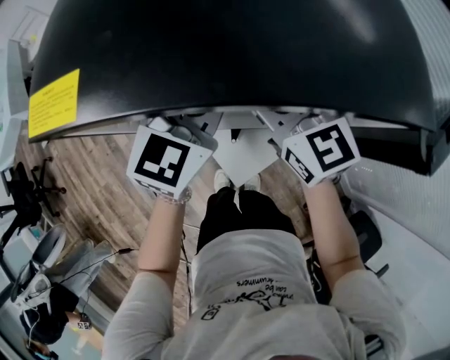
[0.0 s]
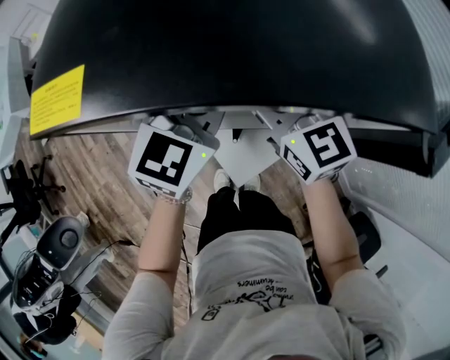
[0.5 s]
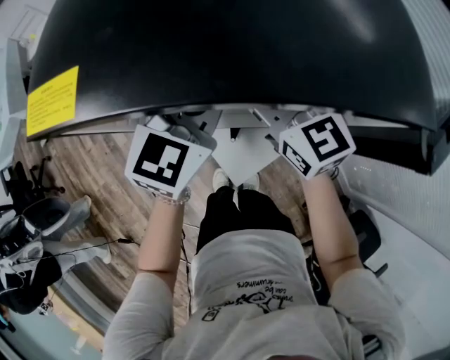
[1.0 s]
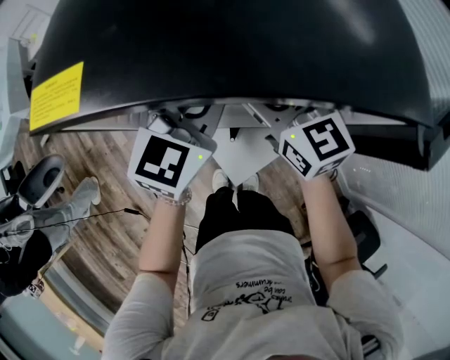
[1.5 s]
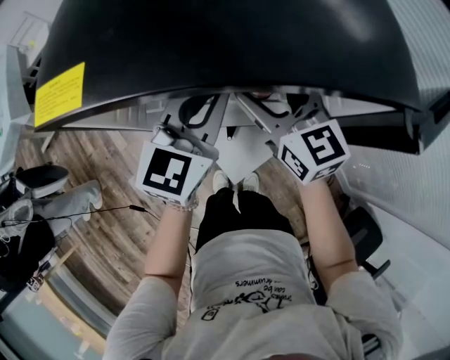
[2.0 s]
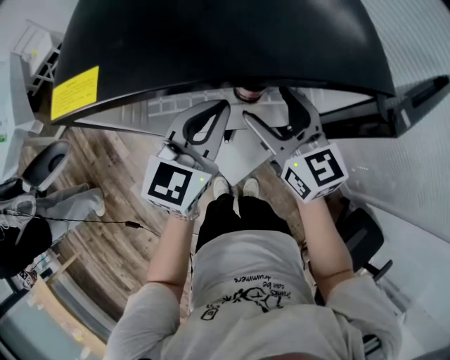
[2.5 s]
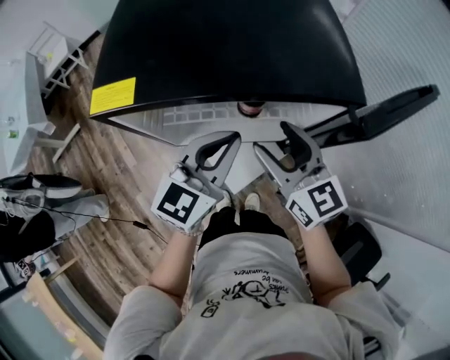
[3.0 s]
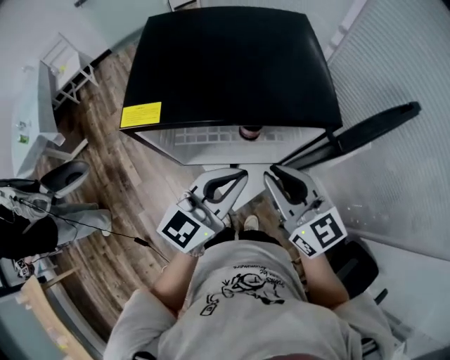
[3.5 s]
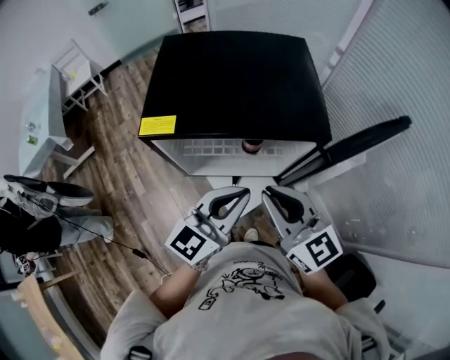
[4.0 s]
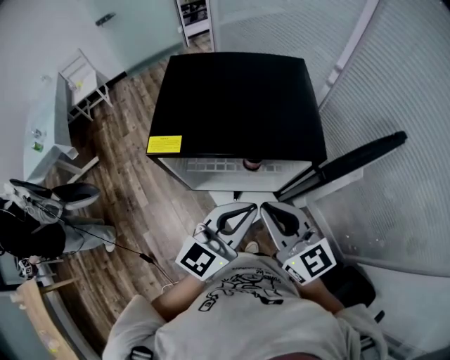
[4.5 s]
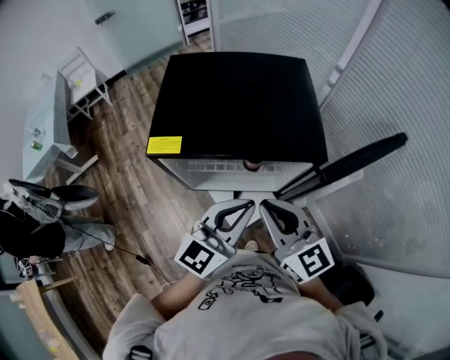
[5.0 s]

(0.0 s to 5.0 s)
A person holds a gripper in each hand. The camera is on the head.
0.0 s - 2.5 s: The right gripper goes some 10 cm to the right and backward; the left gripper is displaced backward by roughly 5 cm.
2.5 s - 5.0 s: The grippers both shift upward and backward by some 20 cm. The right gripper closes its fingers.

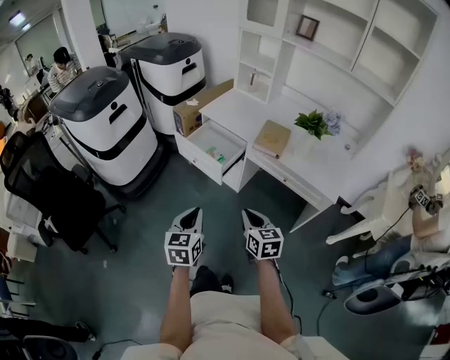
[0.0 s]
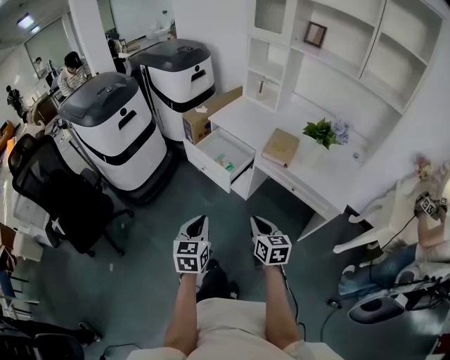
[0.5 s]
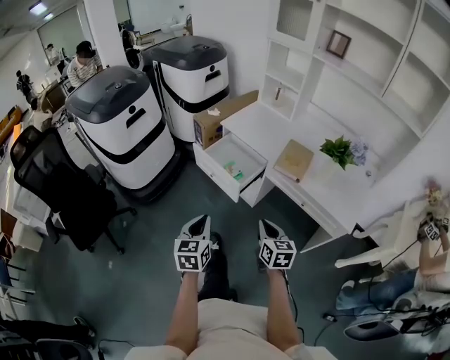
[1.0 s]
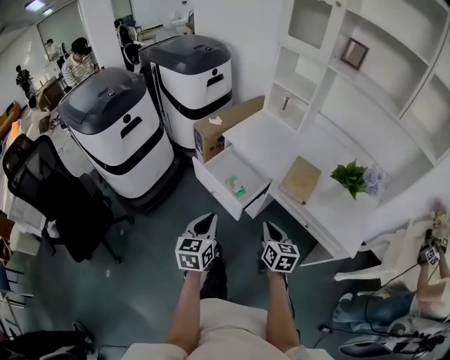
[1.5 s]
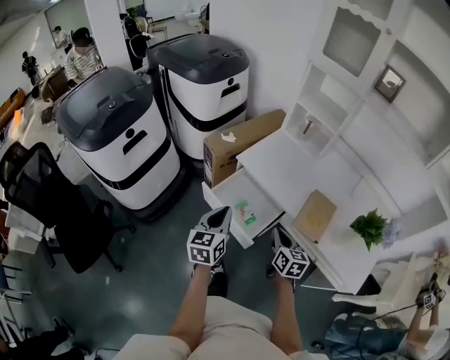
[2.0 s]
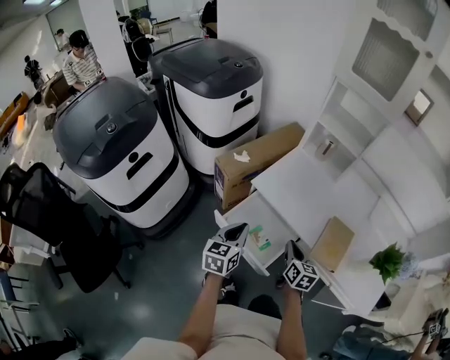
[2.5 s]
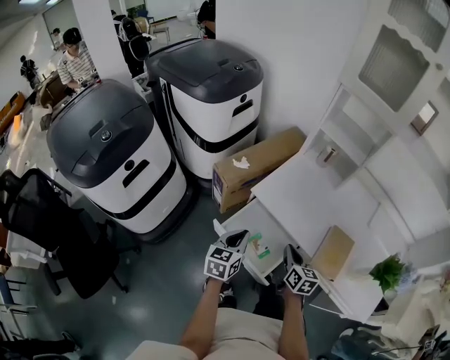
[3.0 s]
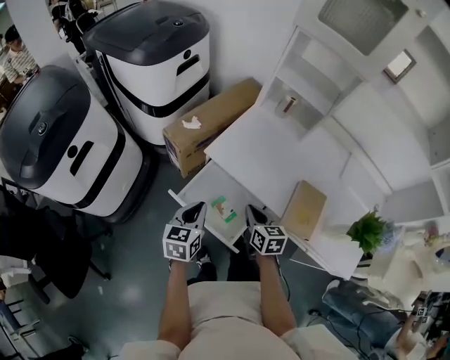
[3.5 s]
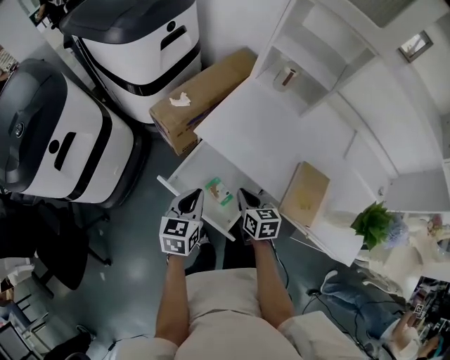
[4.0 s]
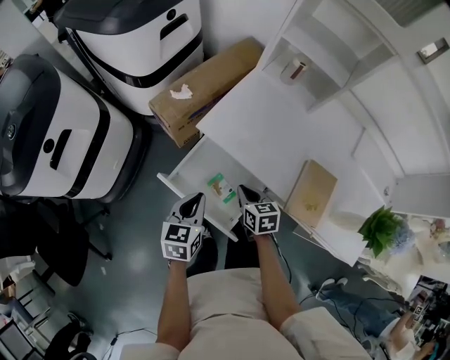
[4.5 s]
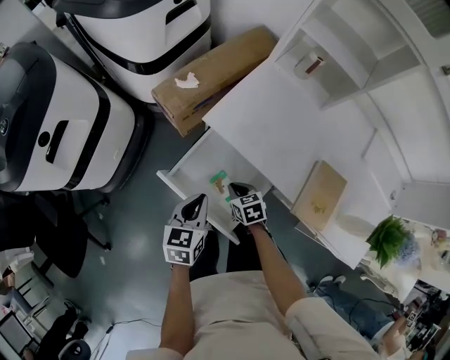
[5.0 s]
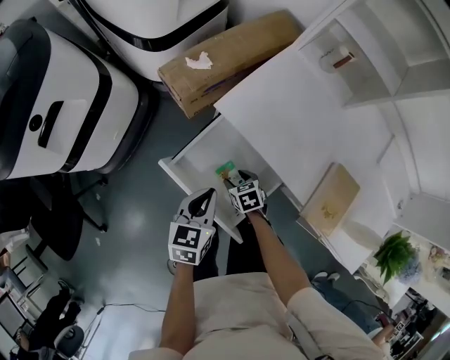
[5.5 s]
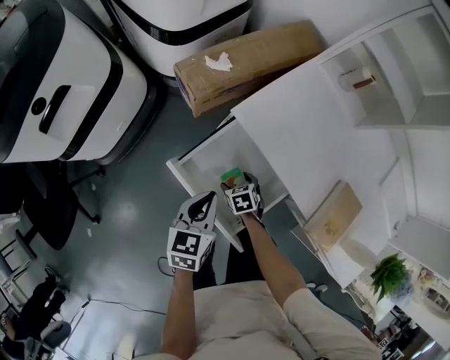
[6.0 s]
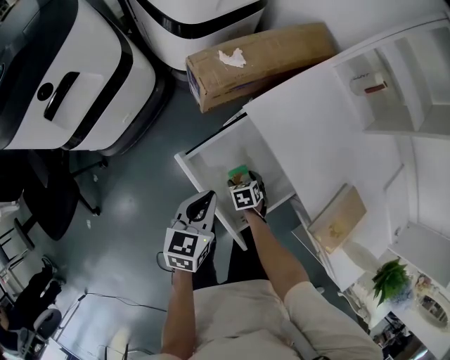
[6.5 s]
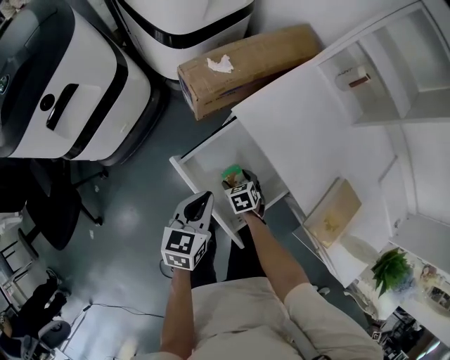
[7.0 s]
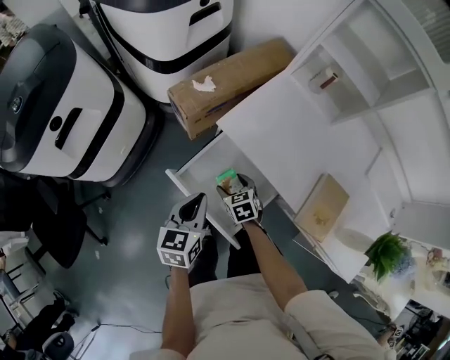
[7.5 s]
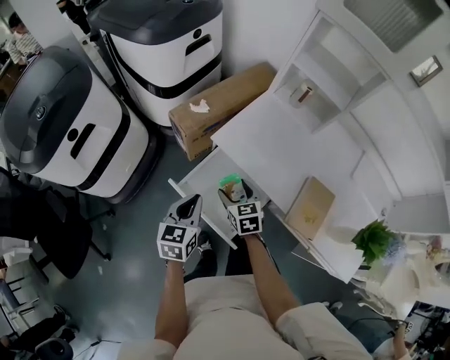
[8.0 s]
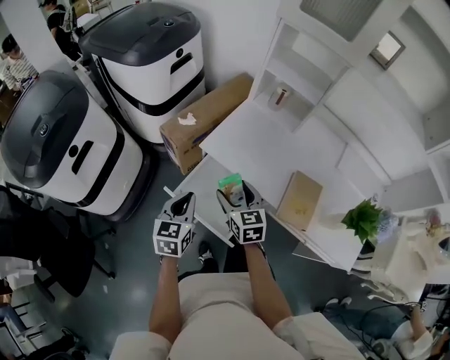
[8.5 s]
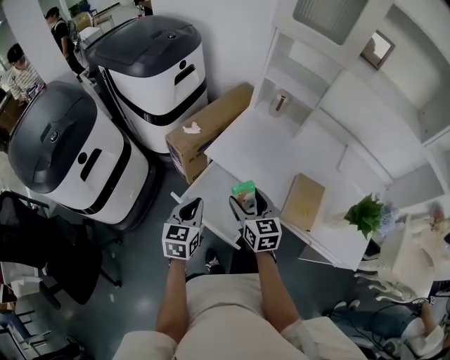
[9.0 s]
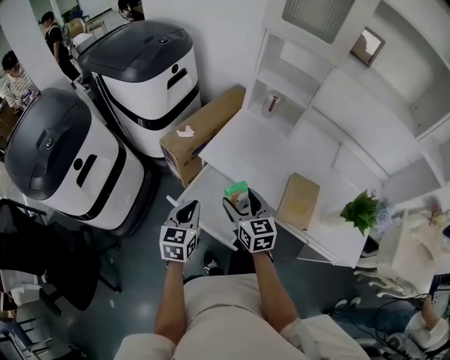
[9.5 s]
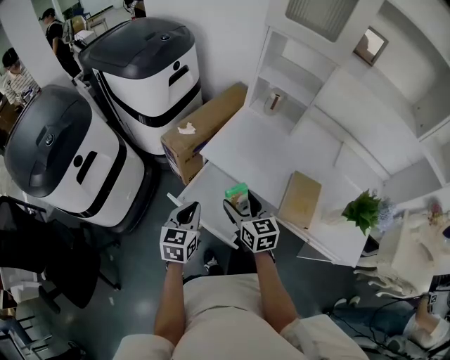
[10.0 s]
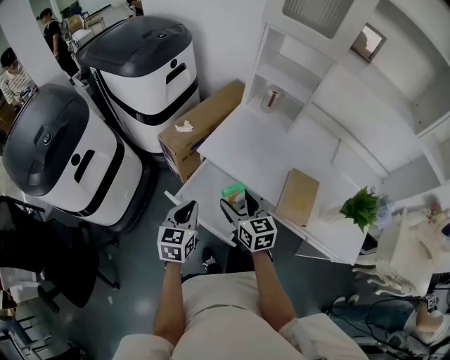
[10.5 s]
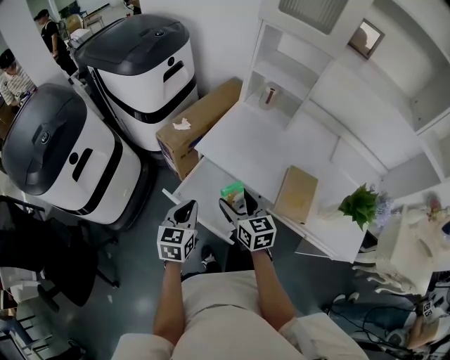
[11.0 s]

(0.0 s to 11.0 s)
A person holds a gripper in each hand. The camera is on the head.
0.0 s - 2.0 s: Both grippers move forward, some 40 cm.
2.0 s - 3.5 s: The grippers both shift forward and downward by approximately 15 cm.
3.5 s - 5.5 s: The left gripper shifts about 10 cm downward; the right gripper moves downward, some 25 cm, turns by some 40 degrees, and opens.
5.5 s - 7.5 s: The right gripper is displaced upward by about 10 cm, while the left gripper is displaced upward by about 5 cm.
7.5 s - 9.0 s: The right gripper moves upward, about 25 cm, and angles its fingers upward, by approximately 30 degrees. The left gripper goes roughly 10 cm upward.
9.0 s - 11.0 s: The grippers stay close to where they were, moving slightly.

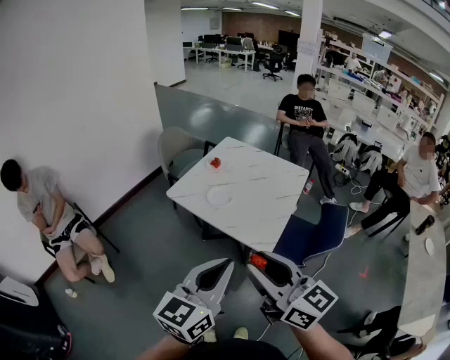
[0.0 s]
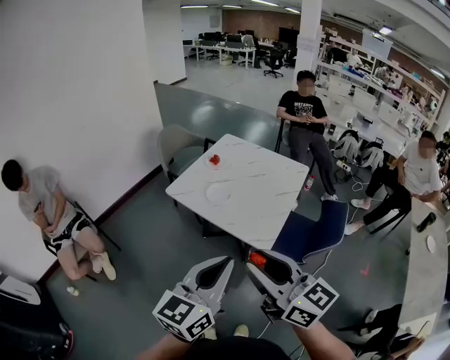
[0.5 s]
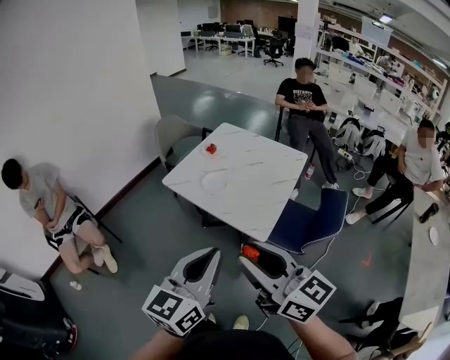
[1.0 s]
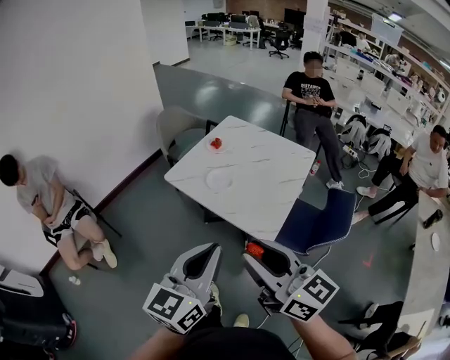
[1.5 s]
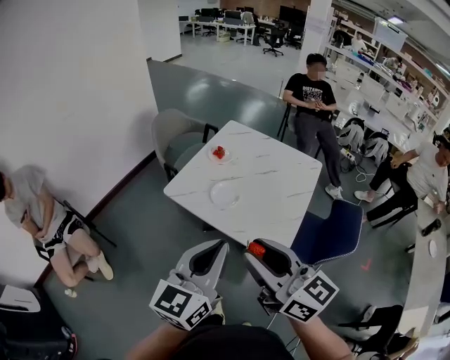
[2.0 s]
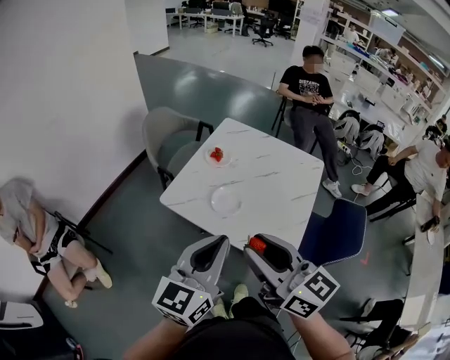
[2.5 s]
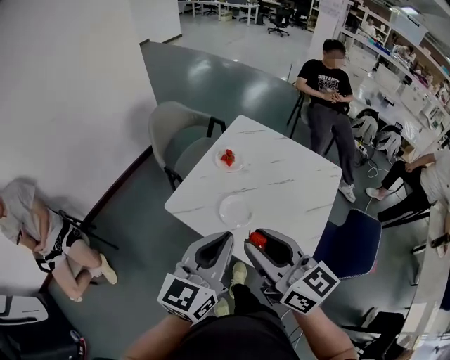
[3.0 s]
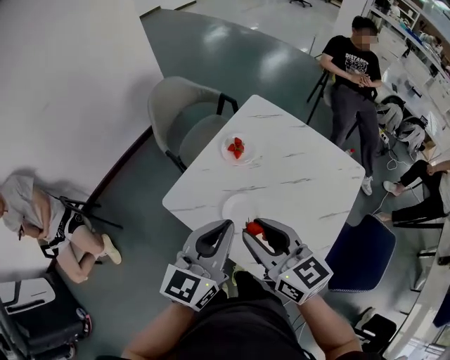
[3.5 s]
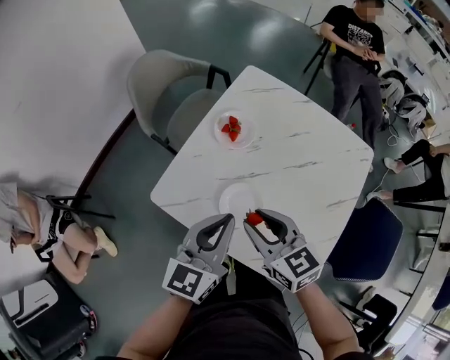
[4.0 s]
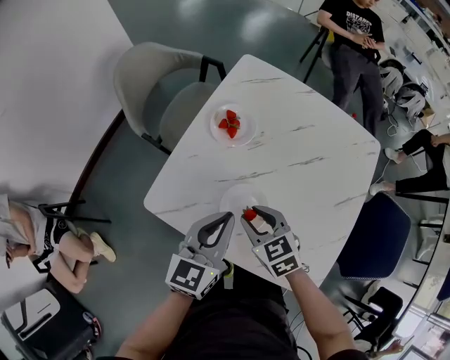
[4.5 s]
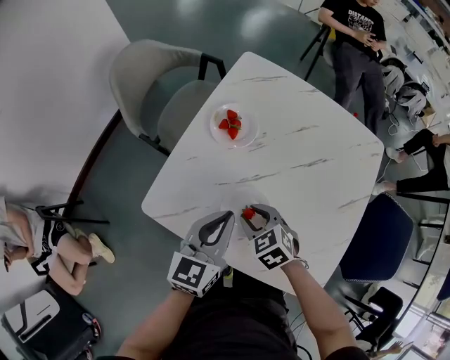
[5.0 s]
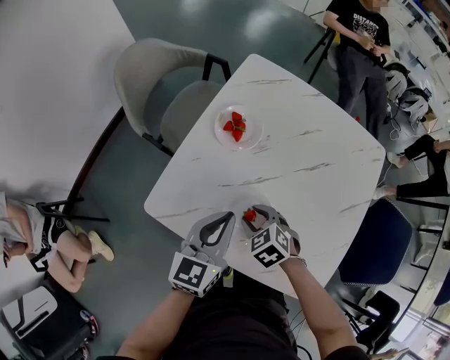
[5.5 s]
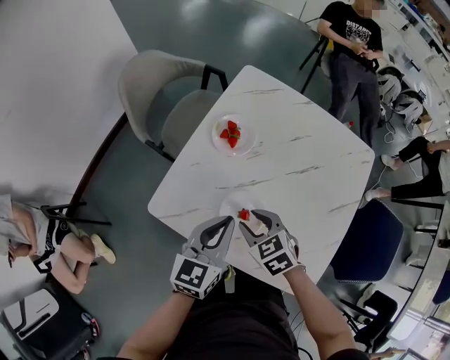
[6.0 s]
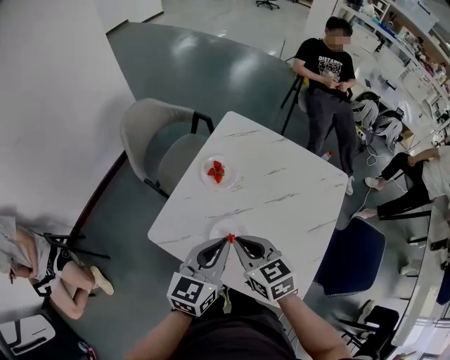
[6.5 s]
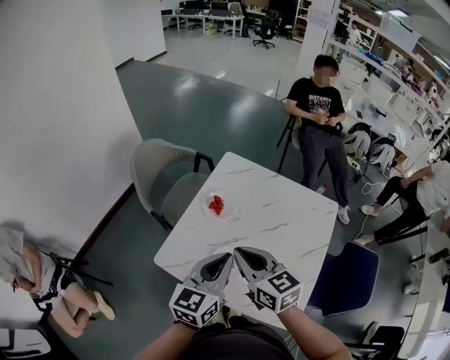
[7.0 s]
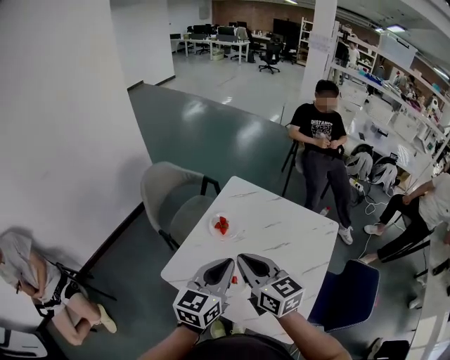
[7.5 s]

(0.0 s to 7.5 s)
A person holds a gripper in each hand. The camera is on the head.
0.0 s - 2.0 s: The grippers both shift forward by about 15 cm.
2.0 s - 4.0 s: Both grippers move forward and downward, about 40 cm. The right gripper rotates some 30 degrees.
4.0 s - 5.5 s: The left gripper shifts approximately 10 cm downward. Meanwhile the right gripper heads downward, covering about 20 cm, and points its fingers some 40 degrees further downward.
5.5 s - 7.5 s: The right gripper moves upward, about 35 cm, tips its fingers upward by approximately 50 degrees, and closes up. Meanwhile the left gripper moves upward, some 25 cm.

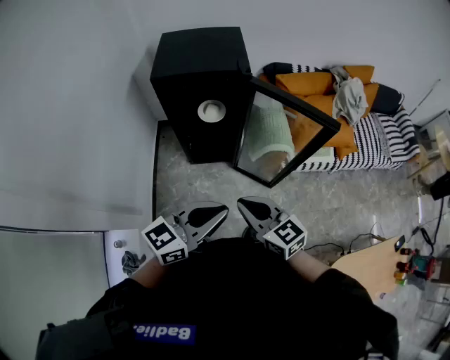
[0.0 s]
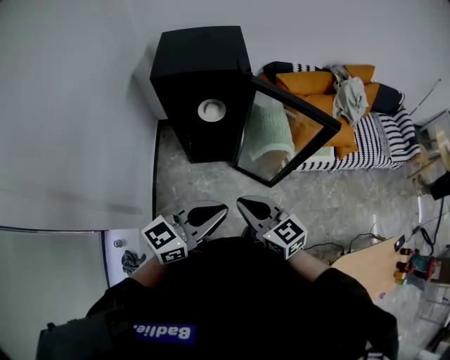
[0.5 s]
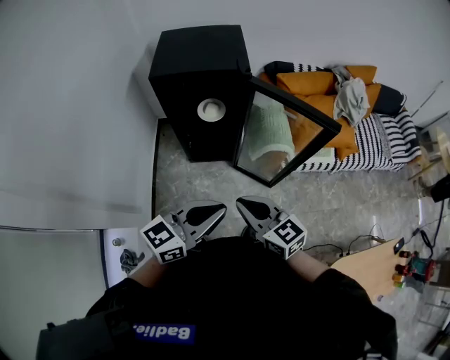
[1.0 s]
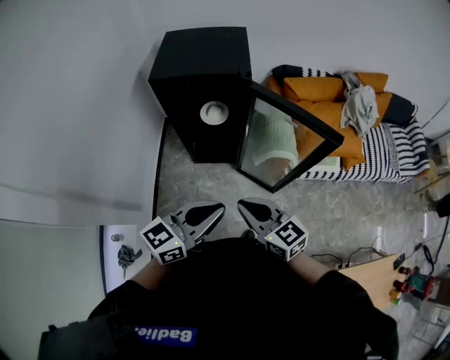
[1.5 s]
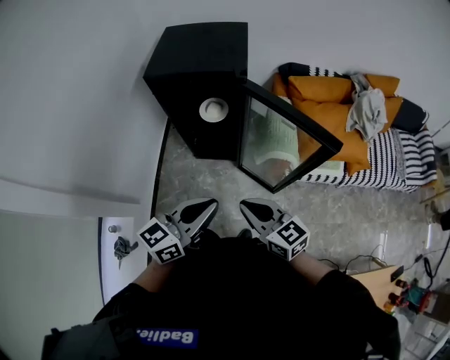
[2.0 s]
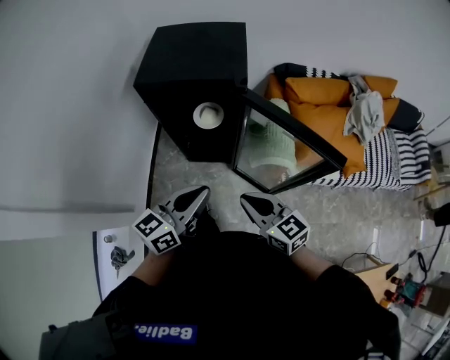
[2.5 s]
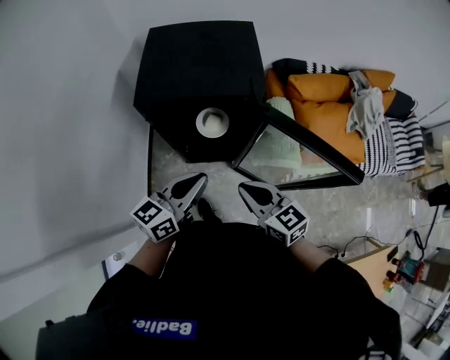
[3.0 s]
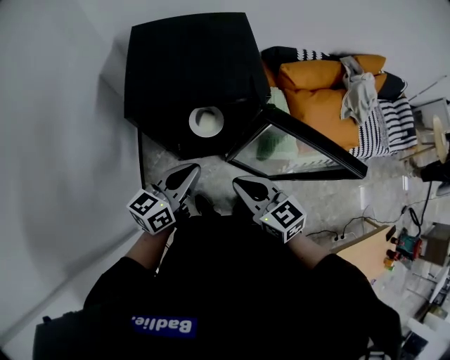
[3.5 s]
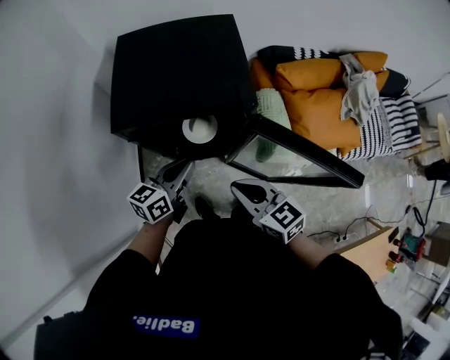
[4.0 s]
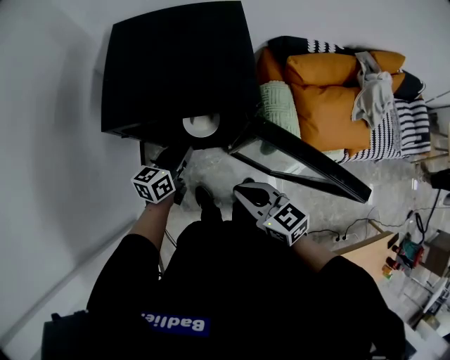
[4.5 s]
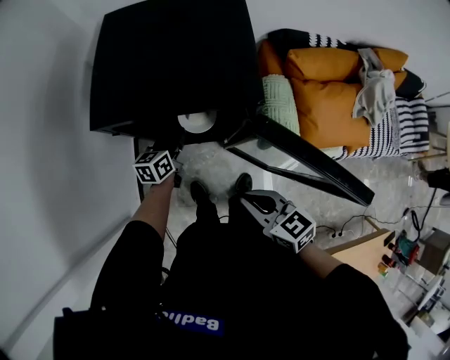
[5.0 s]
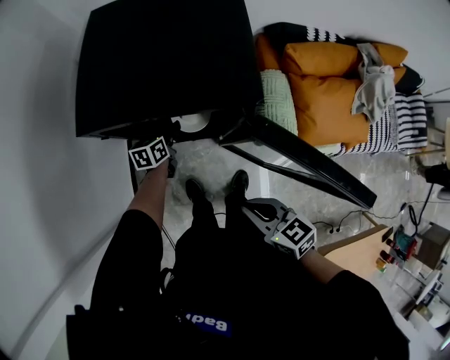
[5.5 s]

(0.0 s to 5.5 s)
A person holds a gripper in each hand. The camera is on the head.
0.0 s - 2.0 s: The left gripper is displaced forward and to the right by some 10 cm; the right gripper shifts approximately 10 cm to the right and forward.
2.0 s - 3.5 s: The two grippers go about 30 cm forward and to the left.
3.5 s - 5.5 s: The left gripper is displaced downward and forward by approximately 30 cm, changes its angle by approximately 40 degrees, and opens up; the right gripper goes approximately 10 cm downward and to the right.
